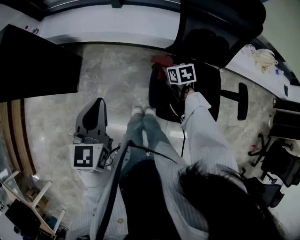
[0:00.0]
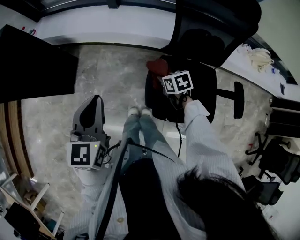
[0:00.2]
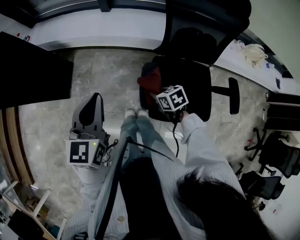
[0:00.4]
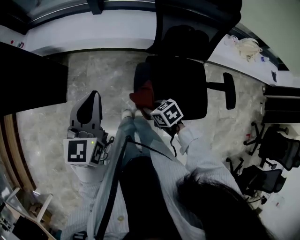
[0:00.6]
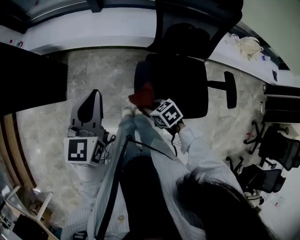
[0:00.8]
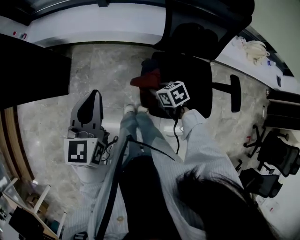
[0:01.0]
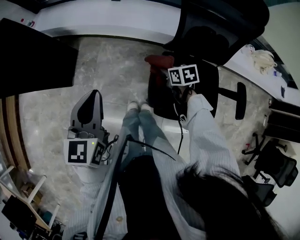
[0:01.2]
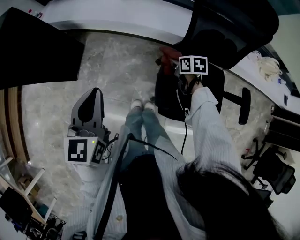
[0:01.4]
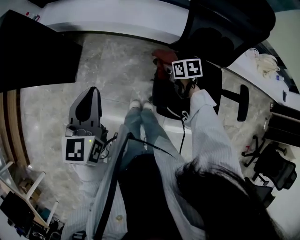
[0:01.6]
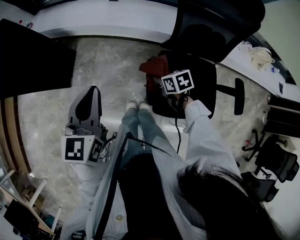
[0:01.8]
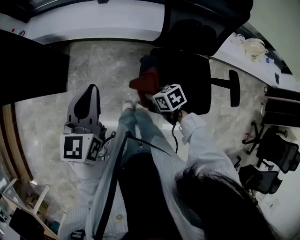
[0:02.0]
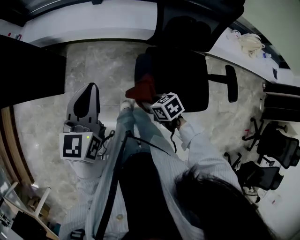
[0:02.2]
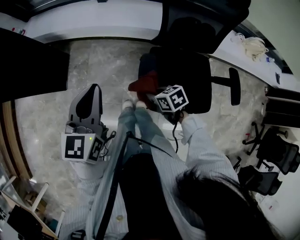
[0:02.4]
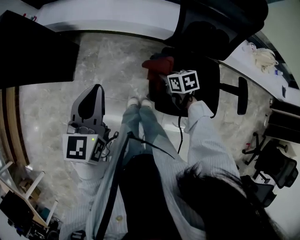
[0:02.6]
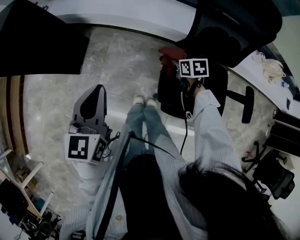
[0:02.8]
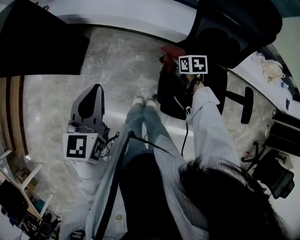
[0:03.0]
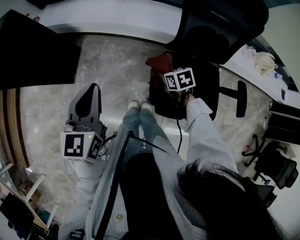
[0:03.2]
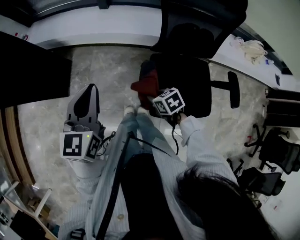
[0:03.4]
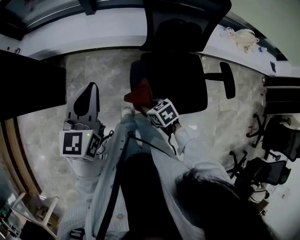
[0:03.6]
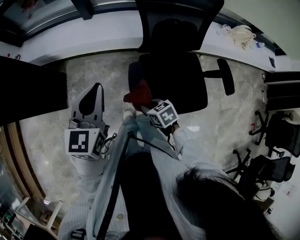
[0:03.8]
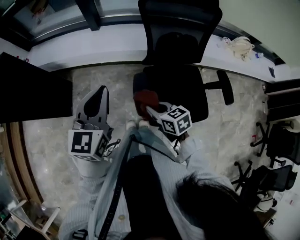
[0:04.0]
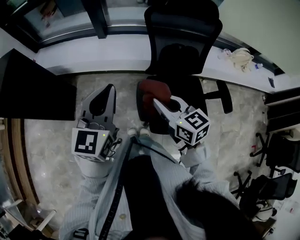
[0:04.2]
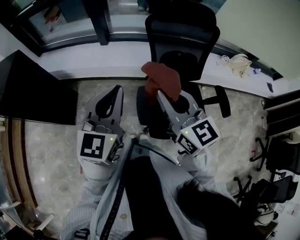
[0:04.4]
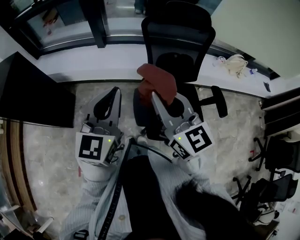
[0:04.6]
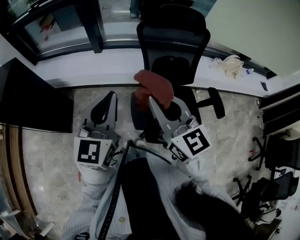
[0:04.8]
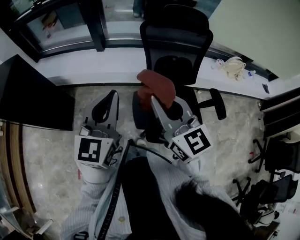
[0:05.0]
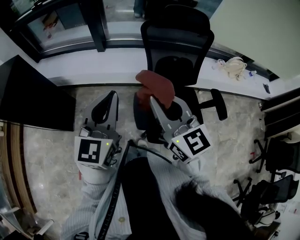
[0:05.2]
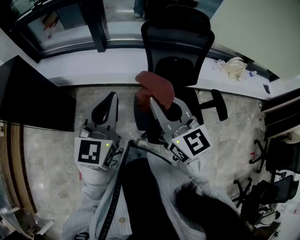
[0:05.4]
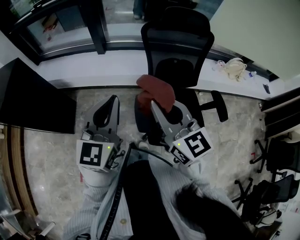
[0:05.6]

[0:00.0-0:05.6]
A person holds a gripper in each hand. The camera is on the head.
0:00.0 to 0:01.4: The left gripper moves roughly 5 cm to the right and comes back. The right gripper travels backward and back again, about 15 cm each way.
0:01.4 to 0:02.8: The right gripper reaches some 20 cm backward, then returns.
0:02.8 to 0:04.2: The right gripper travels upward and backward by approximately 35 cm, and tilts its fingers some 40 degrees upward. The left gripper is displaced to the right and upward by approximately 20 cm, and turns by approximately 30 degrees.
0:04.2 to 0:05.6: The right gripper moves upward, roughly 15 cm, and rotates approximately 20 degrees.

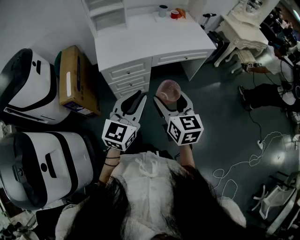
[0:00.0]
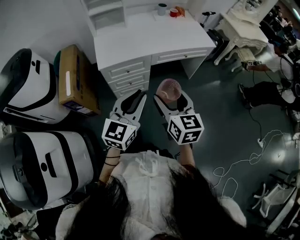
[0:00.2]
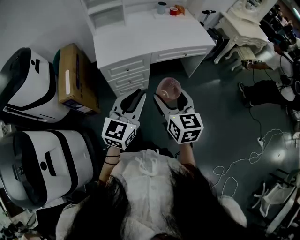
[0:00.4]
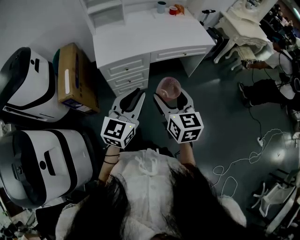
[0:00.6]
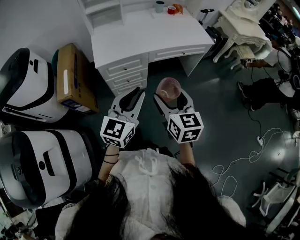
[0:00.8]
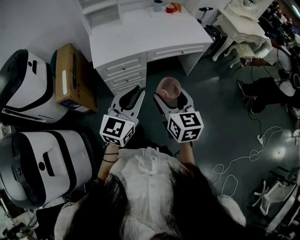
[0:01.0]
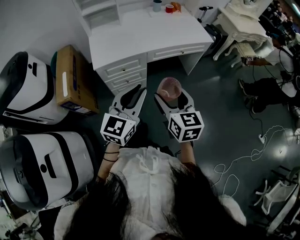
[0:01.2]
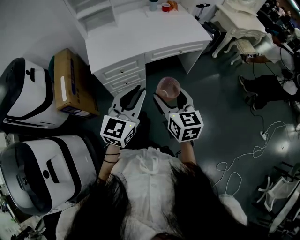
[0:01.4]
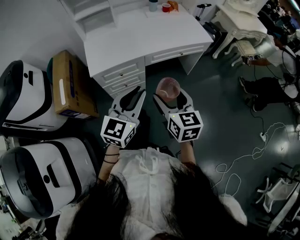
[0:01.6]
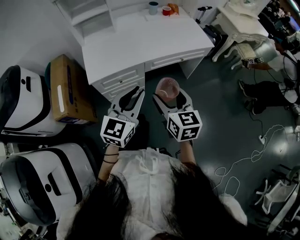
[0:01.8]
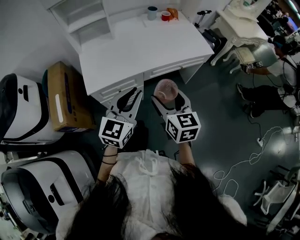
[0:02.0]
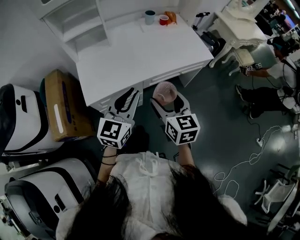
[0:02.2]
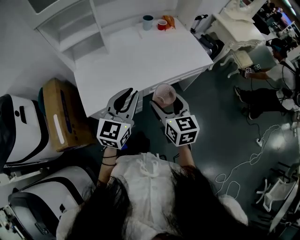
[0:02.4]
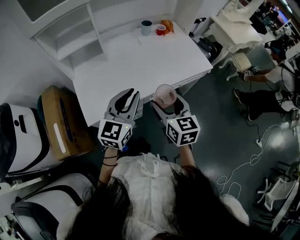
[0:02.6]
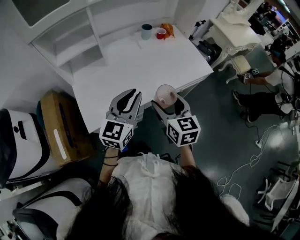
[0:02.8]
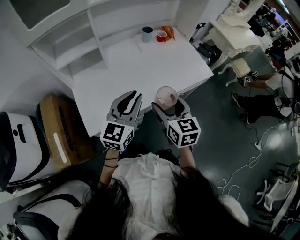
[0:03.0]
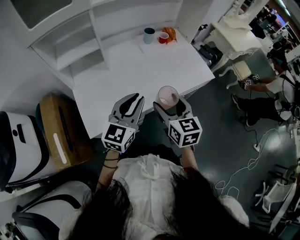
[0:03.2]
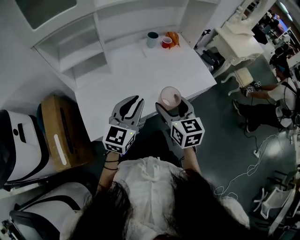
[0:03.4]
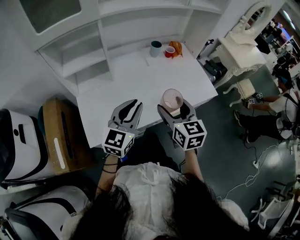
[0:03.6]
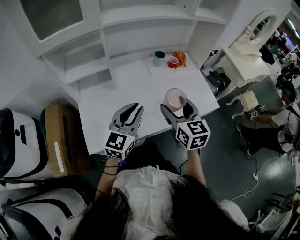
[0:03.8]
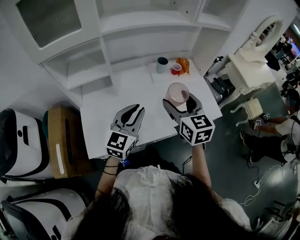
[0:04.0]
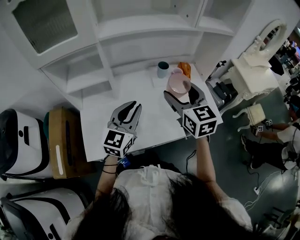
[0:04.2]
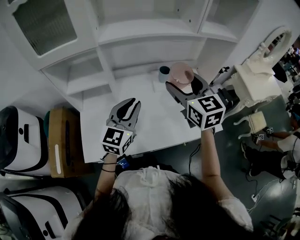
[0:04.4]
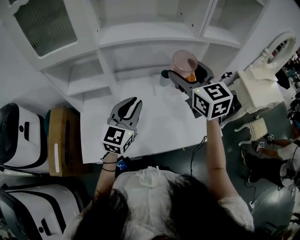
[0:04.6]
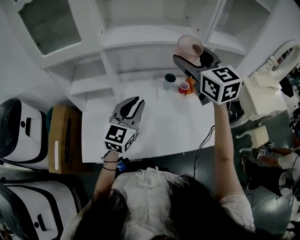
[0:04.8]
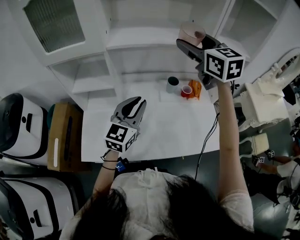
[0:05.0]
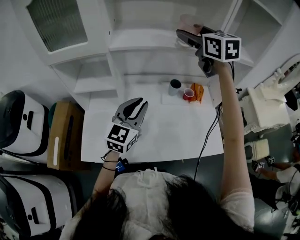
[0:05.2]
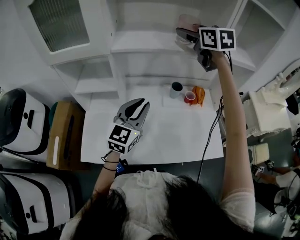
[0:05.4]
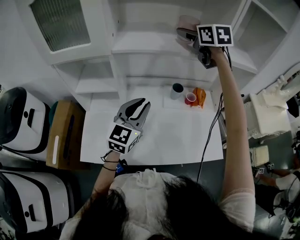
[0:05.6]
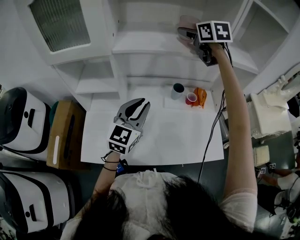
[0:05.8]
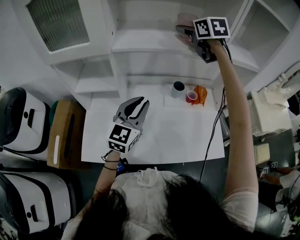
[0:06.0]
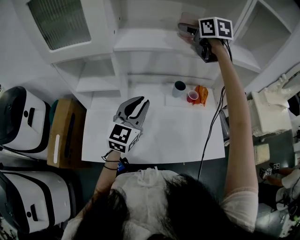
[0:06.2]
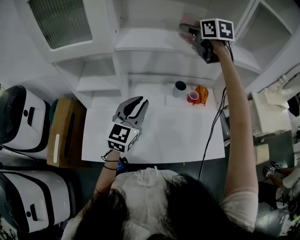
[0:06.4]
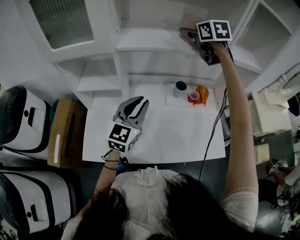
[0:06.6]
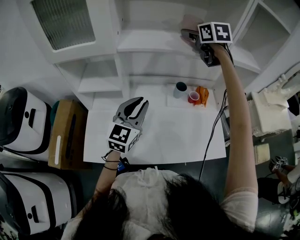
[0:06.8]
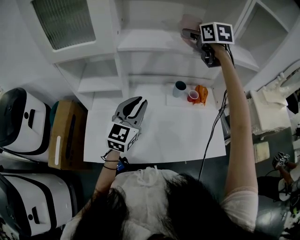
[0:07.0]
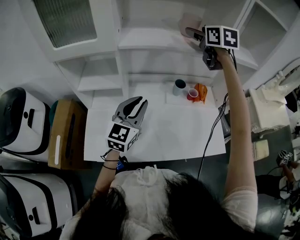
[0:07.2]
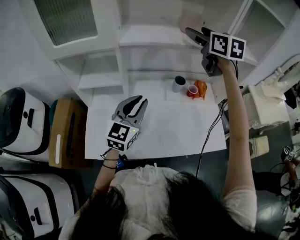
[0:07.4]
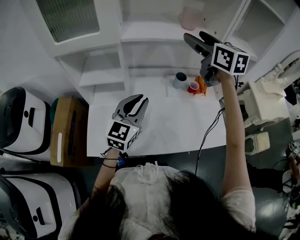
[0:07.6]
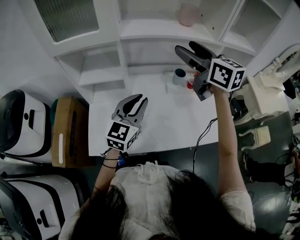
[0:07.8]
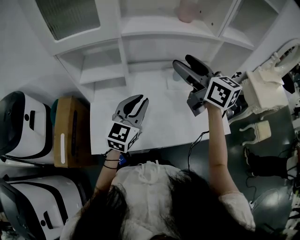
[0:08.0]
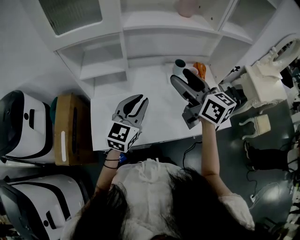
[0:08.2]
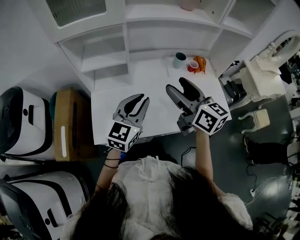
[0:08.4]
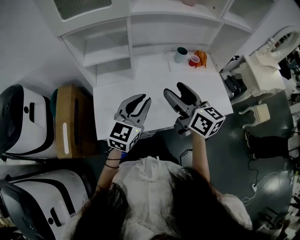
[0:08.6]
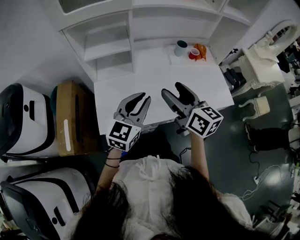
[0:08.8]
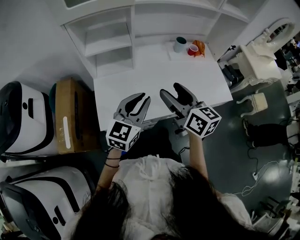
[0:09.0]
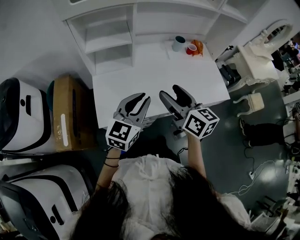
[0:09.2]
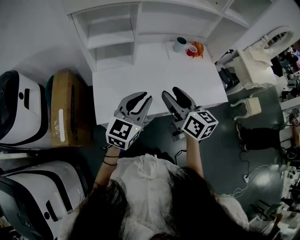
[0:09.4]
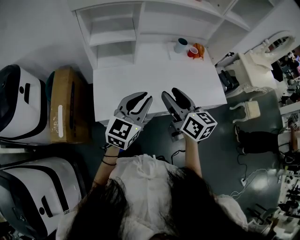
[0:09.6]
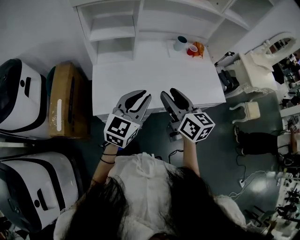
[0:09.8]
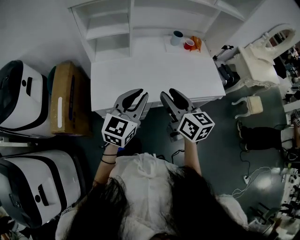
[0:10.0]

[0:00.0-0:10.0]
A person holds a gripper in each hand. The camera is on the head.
0:00.0 to 0:01.4: The grippers make only small movements.
0:01.4 to 0:02.8: Both grippers move forward, about 30 cm.
0:02.8 to 0:04.2: The right gripper moves forward and upward, about 25 cm, and swivels some 20 degrees. Meanwhile the left gripper moves forward, some 15 cm.
0:04.2 to 0:05.8: The left gripper travels forward by roughly 10 cm; the right gripper heads forward and upward, covering roughly 35 cm.
0:05.8 to 0:07.2: There are only small adjustments of the grippers.
0:07.2 to 0:08.6: The left gripper goes roughly 15 cm backward and to the left. The right gripper is displaced backward and downward by some 40 cm, and changes its angle by roughly 30 degrees.
0:08.6 to 0:10.0: Both grippers travel together backward, about 15 cm. The right gripper closes its fingers.

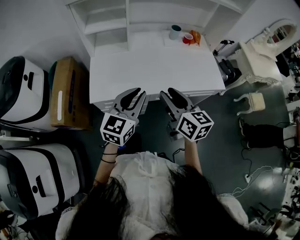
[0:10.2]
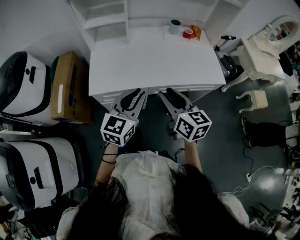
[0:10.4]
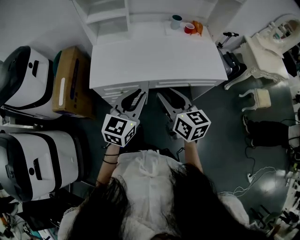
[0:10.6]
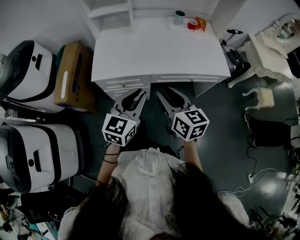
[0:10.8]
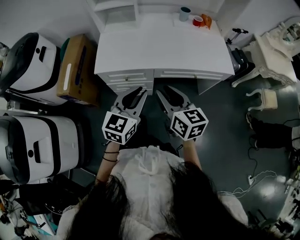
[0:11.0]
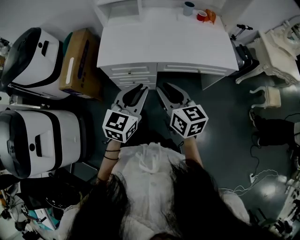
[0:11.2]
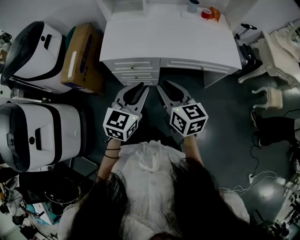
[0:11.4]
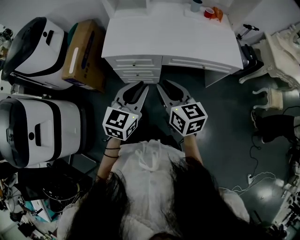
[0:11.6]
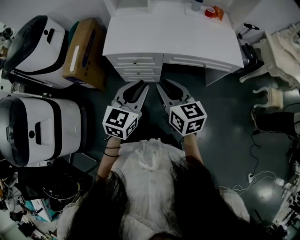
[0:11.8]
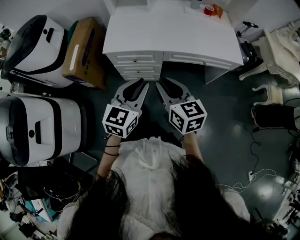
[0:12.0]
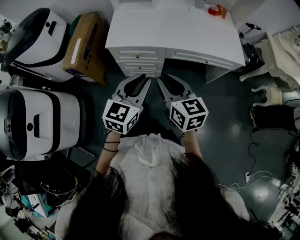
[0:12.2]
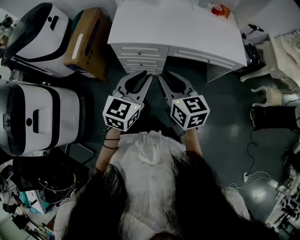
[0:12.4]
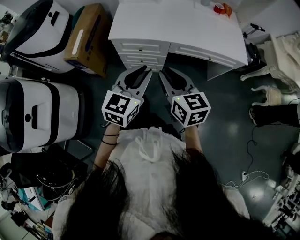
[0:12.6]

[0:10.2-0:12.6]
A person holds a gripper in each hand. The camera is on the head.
0:10.2 to 0:11.4: Both grippers move backward, approximately 15 cm.
0:11.4 to 0:12.6: The right gripper shifts by approximately 5 cm.

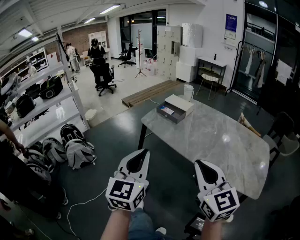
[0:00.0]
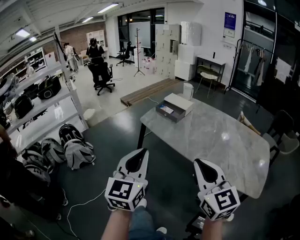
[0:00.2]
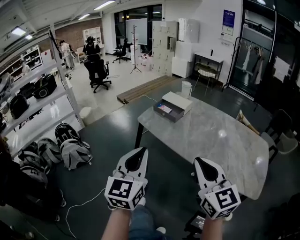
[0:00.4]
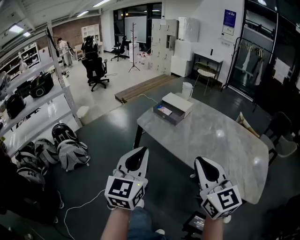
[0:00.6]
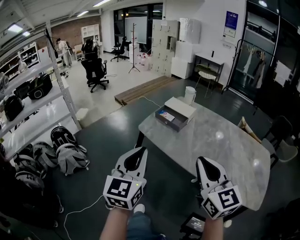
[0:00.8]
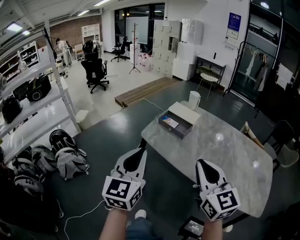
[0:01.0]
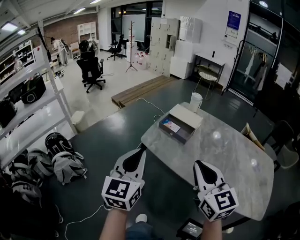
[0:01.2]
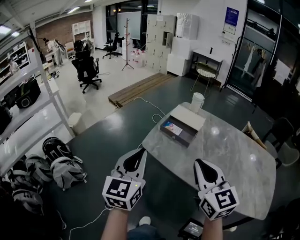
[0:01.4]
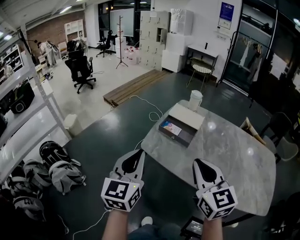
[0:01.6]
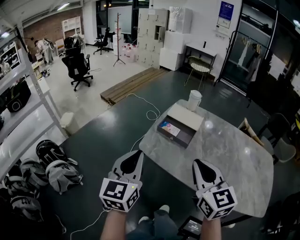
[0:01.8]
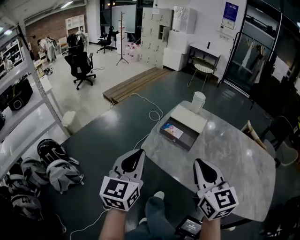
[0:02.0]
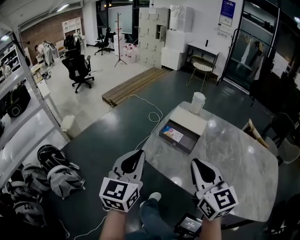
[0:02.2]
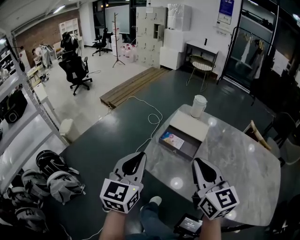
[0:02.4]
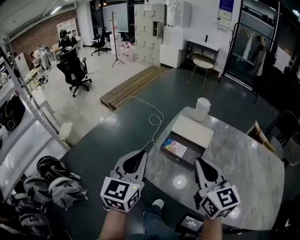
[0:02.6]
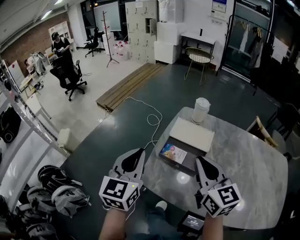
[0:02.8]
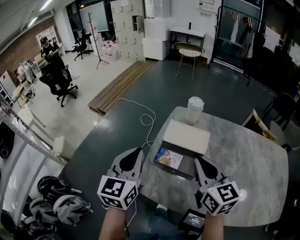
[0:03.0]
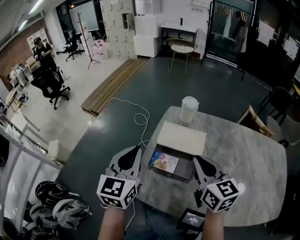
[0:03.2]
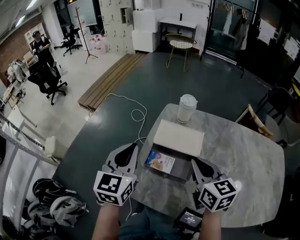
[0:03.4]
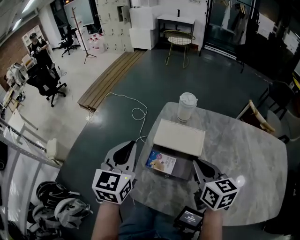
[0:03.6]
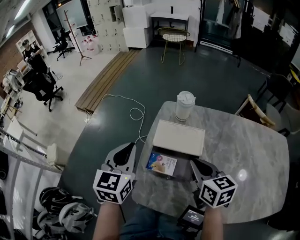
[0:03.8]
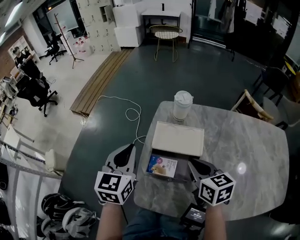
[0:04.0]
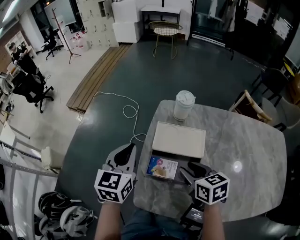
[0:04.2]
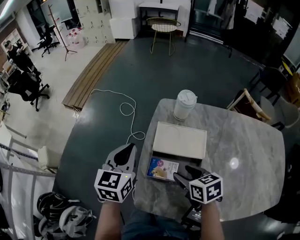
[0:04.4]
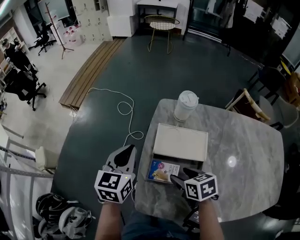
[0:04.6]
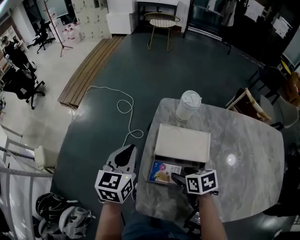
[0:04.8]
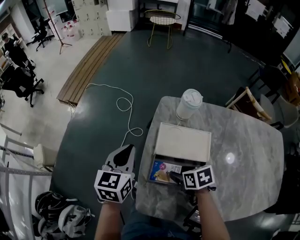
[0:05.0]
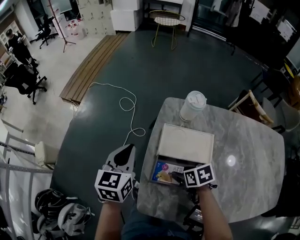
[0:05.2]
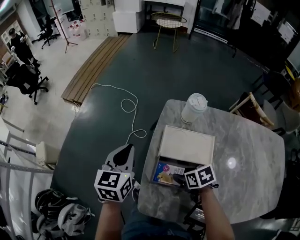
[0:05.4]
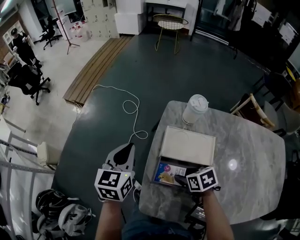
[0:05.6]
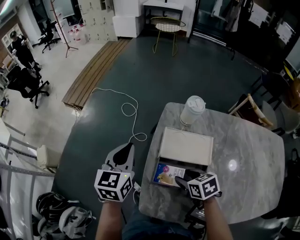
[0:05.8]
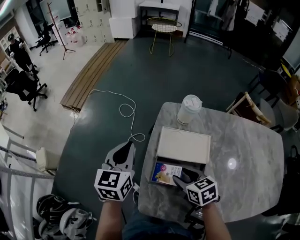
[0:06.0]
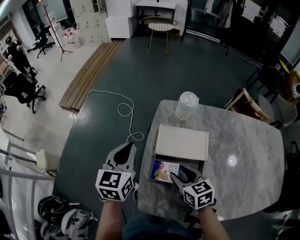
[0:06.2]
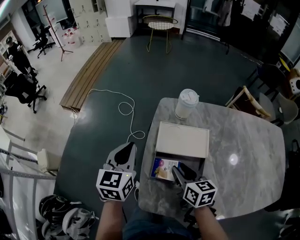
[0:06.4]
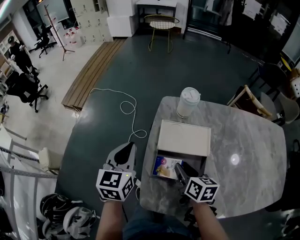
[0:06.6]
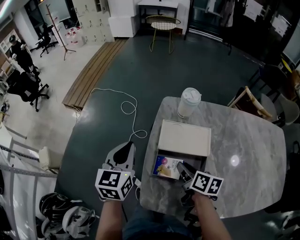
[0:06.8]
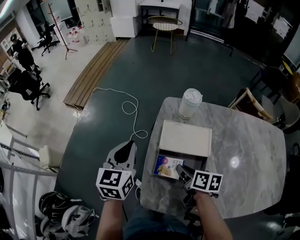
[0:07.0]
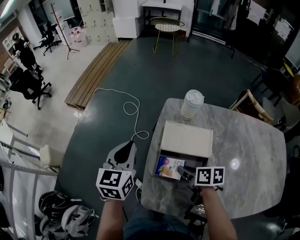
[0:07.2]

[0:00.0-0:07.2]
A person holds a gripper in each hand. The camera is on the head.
0:00.0 to 0:01.4: The grippers both shift forward by some 30 cm.
0:01.4 to 0:02.8: The grippers both shift forward by roughly 25 cm.
0:02.8 to 0:04.4: The right gripper goes some 20 cm downward and forward, tips its fingers downward by about 40 degrees, and opens up, while the left gripper travels forward and downward by some 20 cm, and changes its angle by roughly 20 degrees.
0:05.8 to 0:07.2: The right gripper rotates approximately 30 degrees, and closes.
